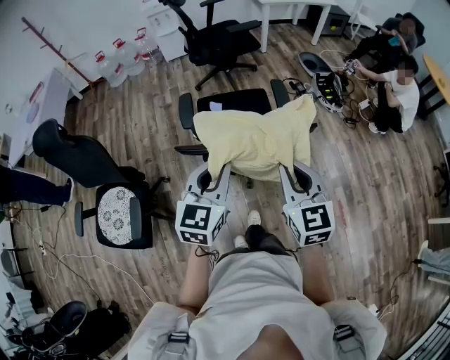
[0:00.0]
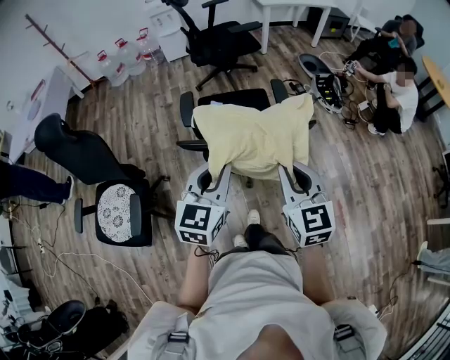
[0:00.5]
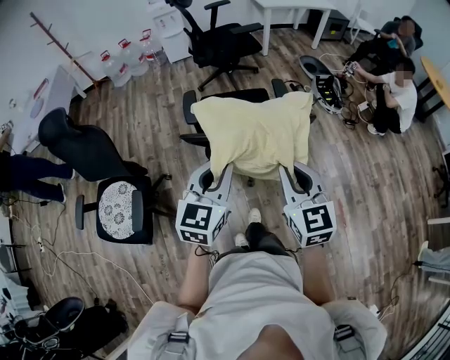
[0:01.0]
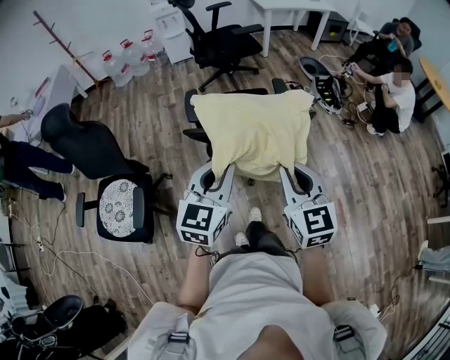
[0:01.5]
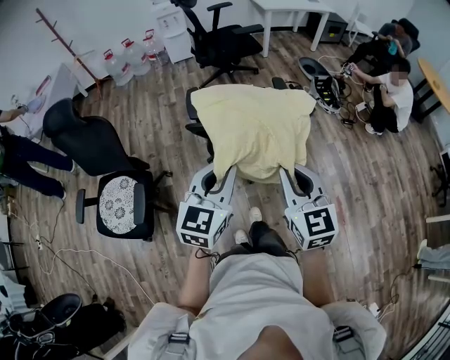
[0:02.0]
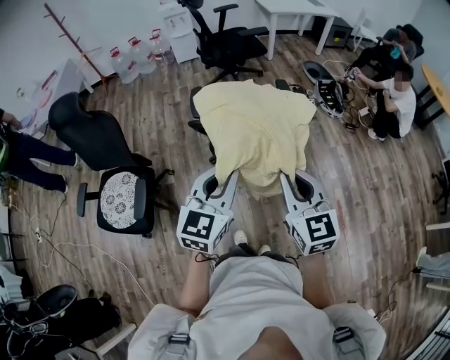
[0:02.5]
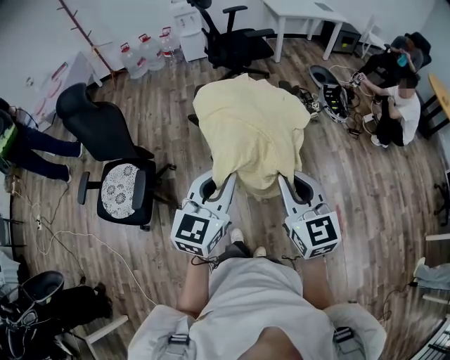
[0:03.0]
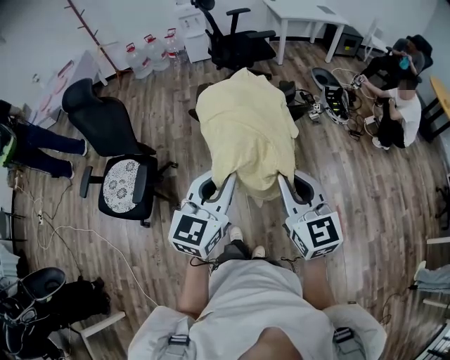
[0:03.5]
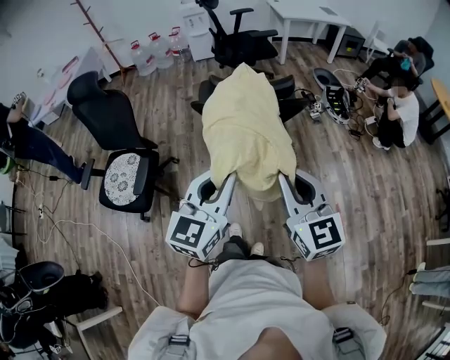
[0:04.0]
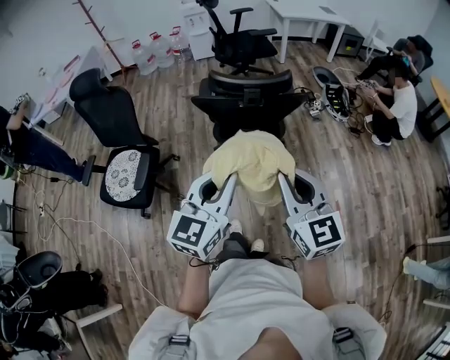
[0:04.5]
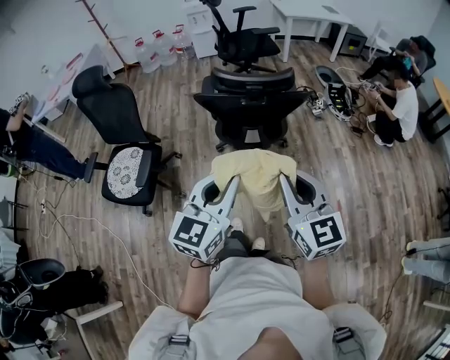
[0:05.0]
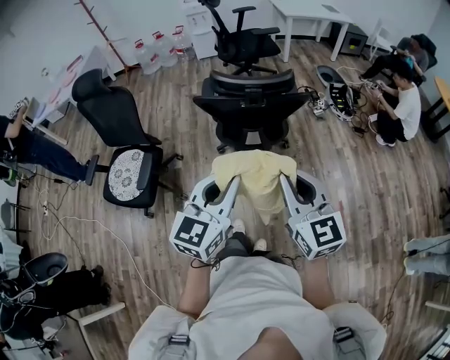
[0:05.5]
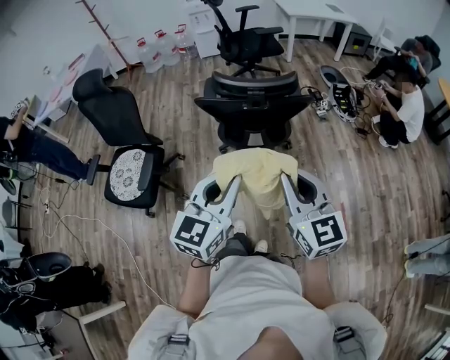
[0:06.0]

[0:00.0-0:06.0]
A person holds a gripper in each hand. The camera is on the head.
0:00.0 to 0:02.0: Both grippers travel together backward, some 10 cm.
0:02.0 to 0:04.0: Both grippers travel together backward, approximately 15 cm.
0:04.0 to 0:06.0: There are only small adjustments of the grippers.

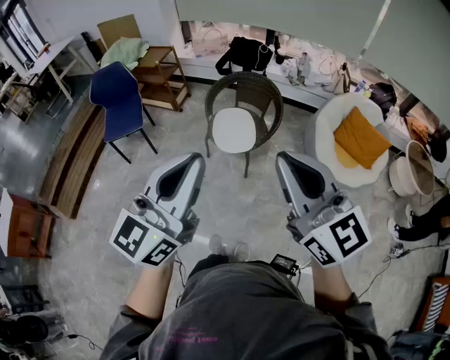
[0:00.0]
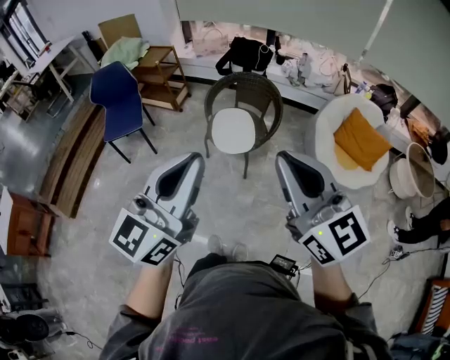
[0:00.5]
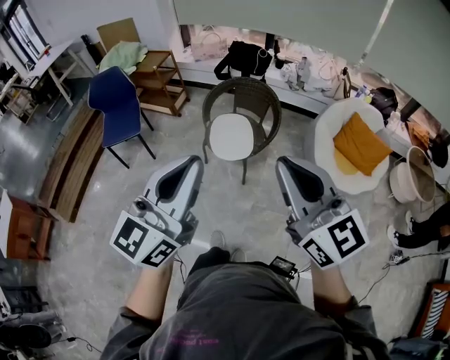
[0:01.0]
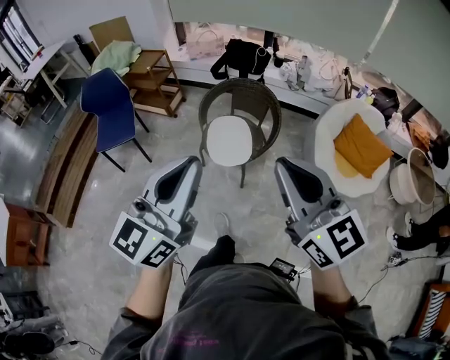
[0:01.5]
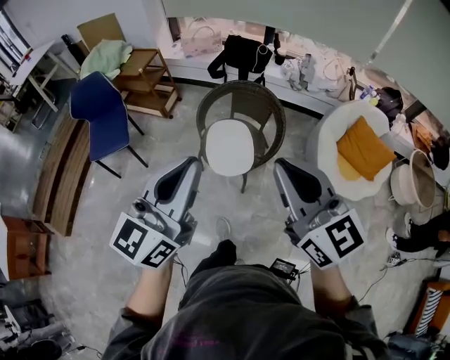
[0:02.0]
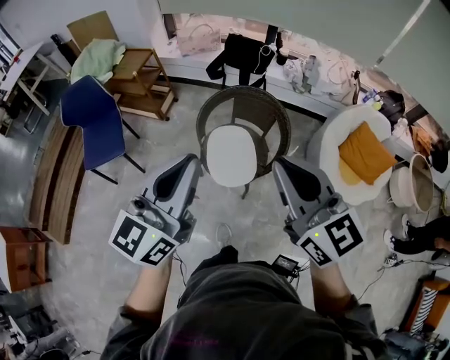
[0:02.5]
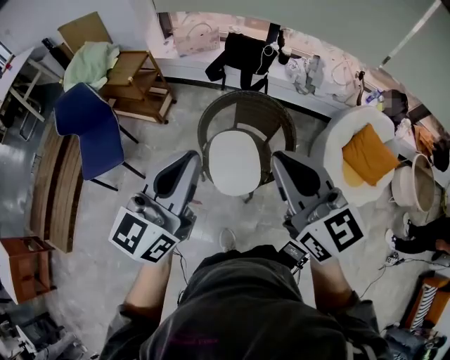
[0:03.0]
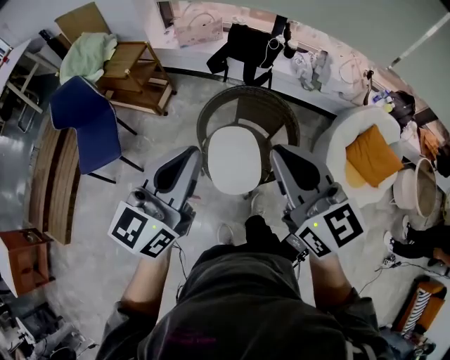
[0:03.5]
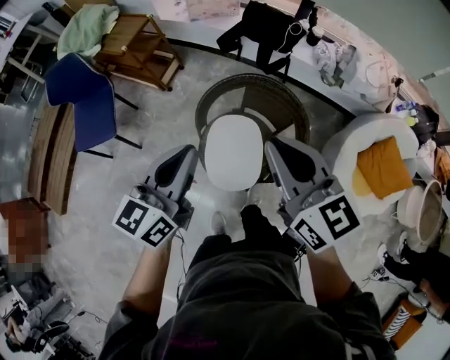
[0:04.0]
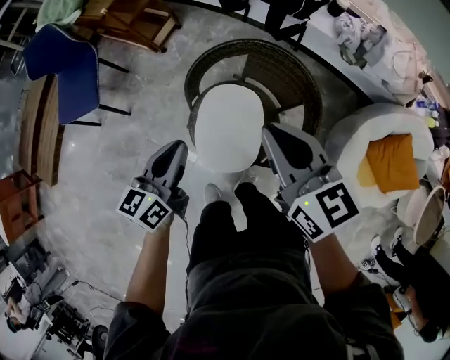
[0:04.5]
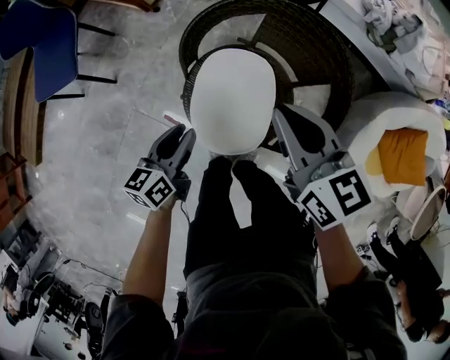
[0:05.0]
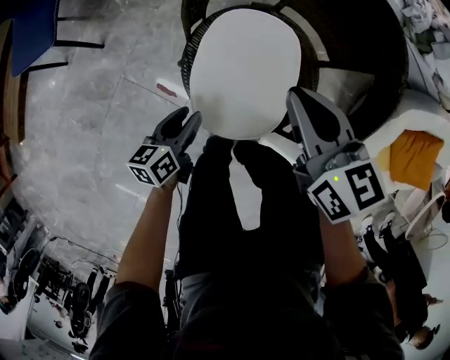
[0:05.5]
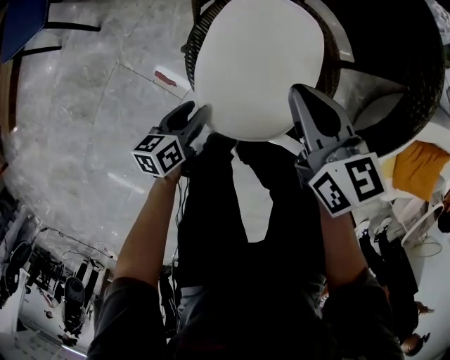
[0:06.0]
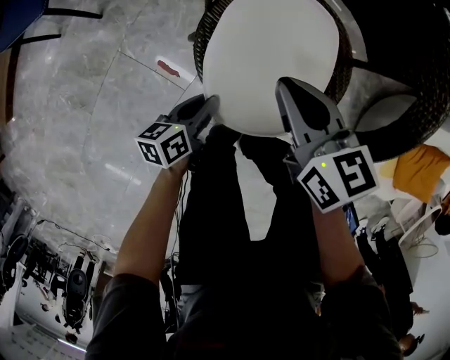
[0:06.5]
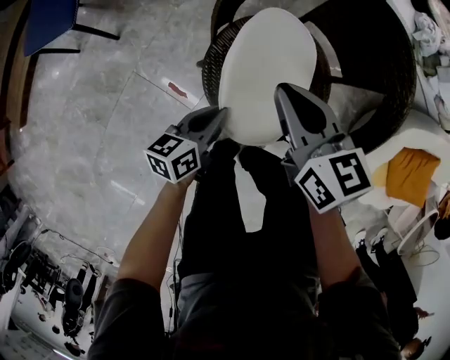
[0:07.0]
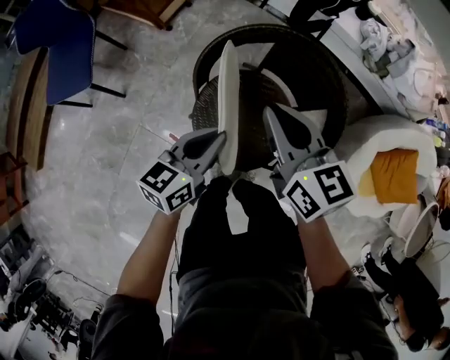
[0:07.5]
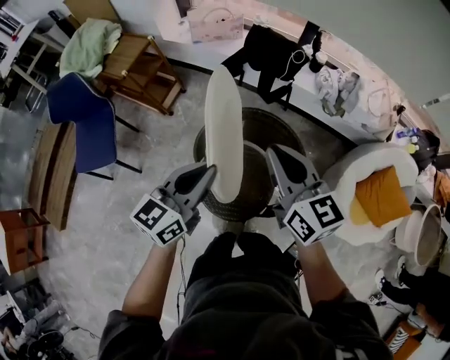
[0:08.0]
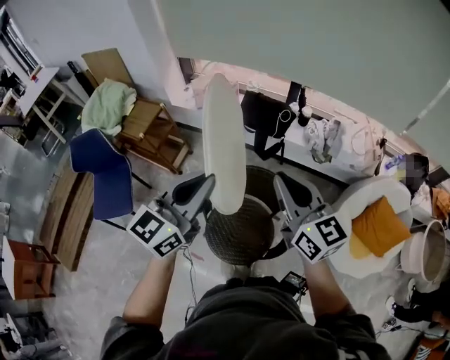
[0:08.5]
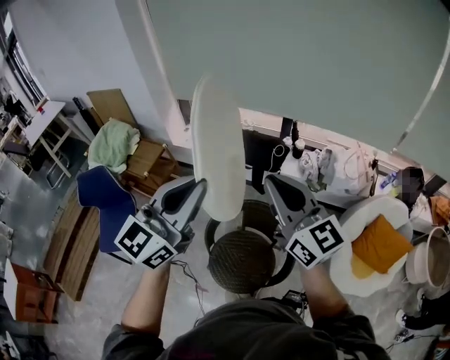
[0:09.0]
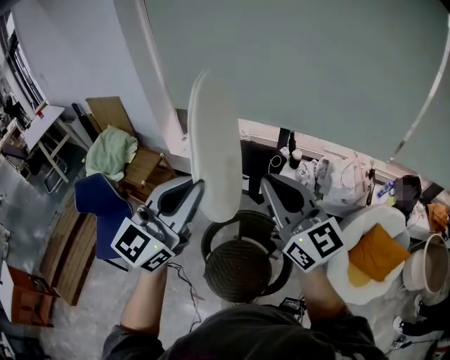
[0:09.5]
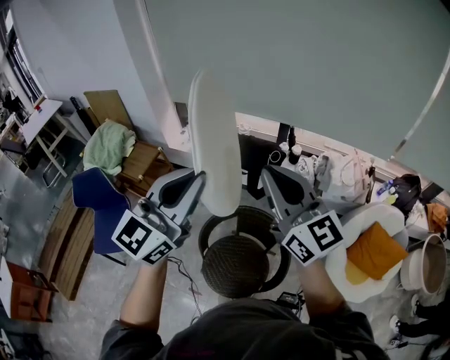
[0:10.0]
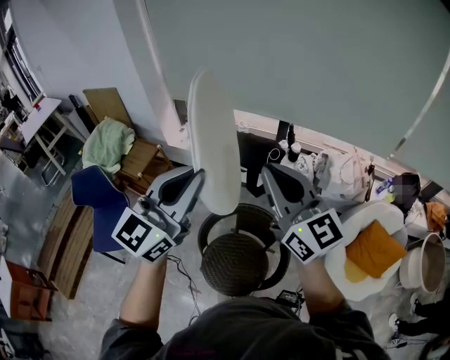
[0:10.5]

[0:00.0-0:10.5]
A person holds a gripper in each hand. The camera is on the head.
0:00.0 to 0:02.0: The two grippers go approximately 20 cm forward.
0:02.0 to 0:04.0: The right gripper heads forward, covering roughly 35 cm; the left gripper heads forward and downward, covering roughly 40 cm, and swivels about 20 degrees.
0:04.0 to 0:06.5: The two grippers go roughly 60 cm downward. The left gripper rotates roughly 50 degrees, and opens and closes again. Meanwhile the right gripper rotates roughly 30 degrees.
0:06.5 to 0:08.5: Both grippers move upward, some 70 cm. The right gripper tilts its fingers approximately 30 degrees upward; the left gripper twists roughly 60 degrees clockwise, seen from behind.
0:08.5 to 0:10.5: Both grippers move upward, approximately 15 cm.

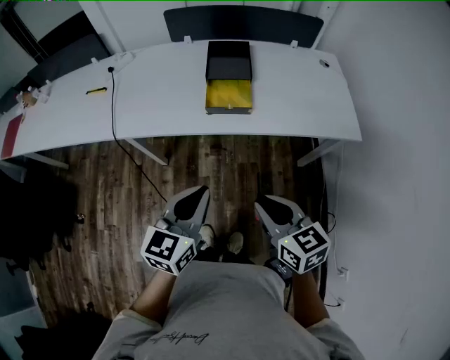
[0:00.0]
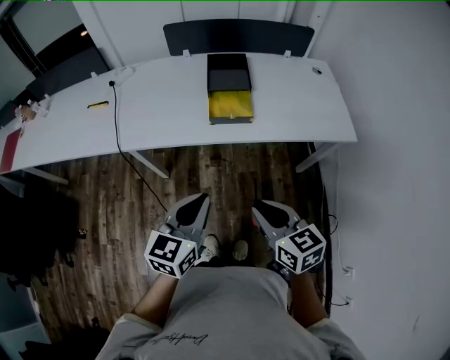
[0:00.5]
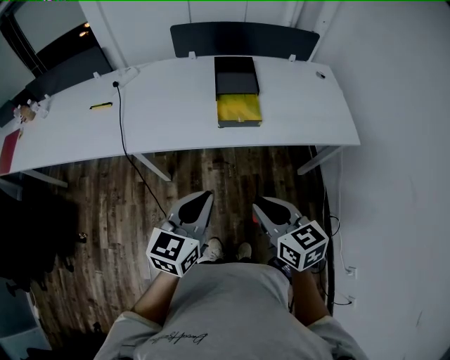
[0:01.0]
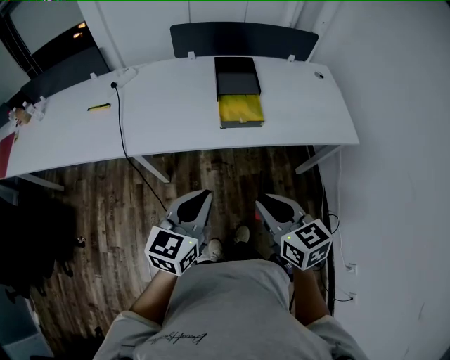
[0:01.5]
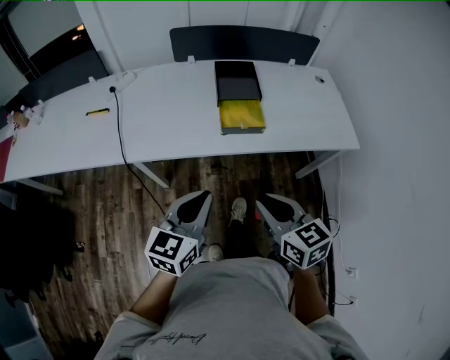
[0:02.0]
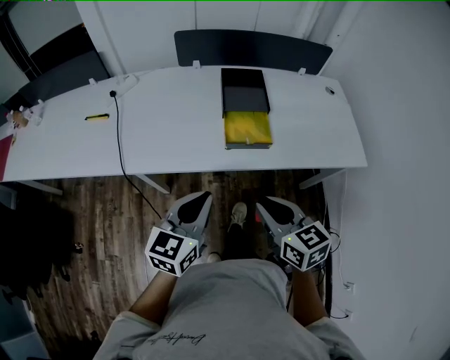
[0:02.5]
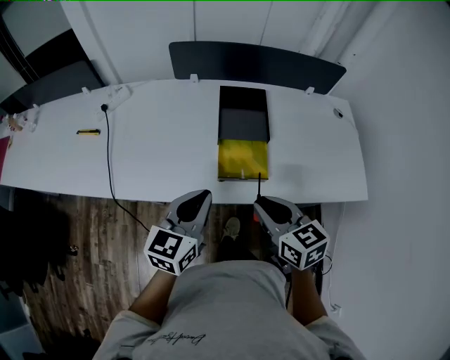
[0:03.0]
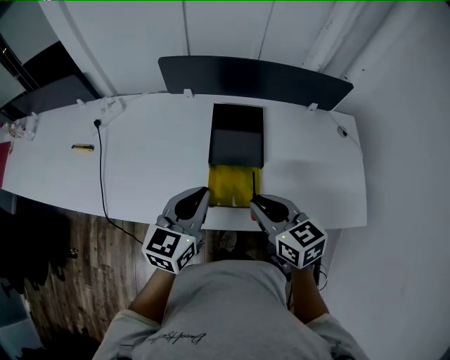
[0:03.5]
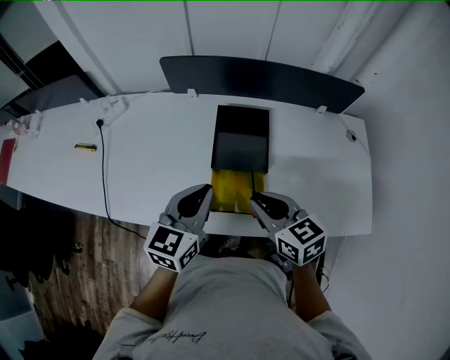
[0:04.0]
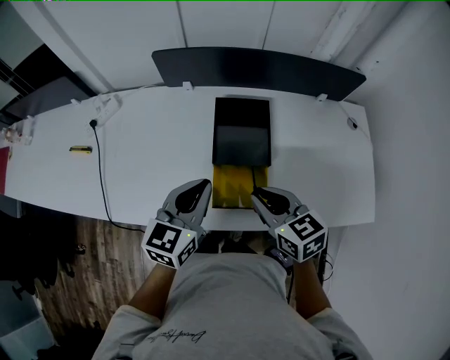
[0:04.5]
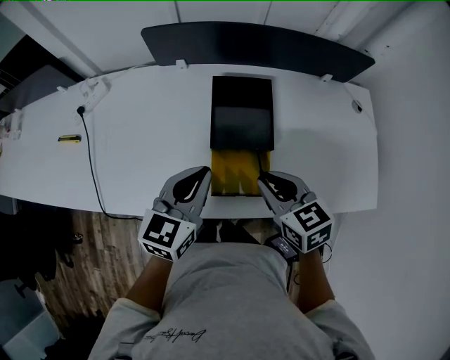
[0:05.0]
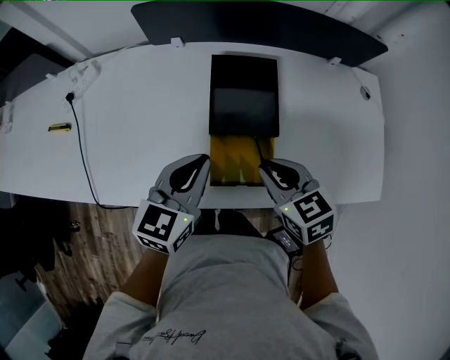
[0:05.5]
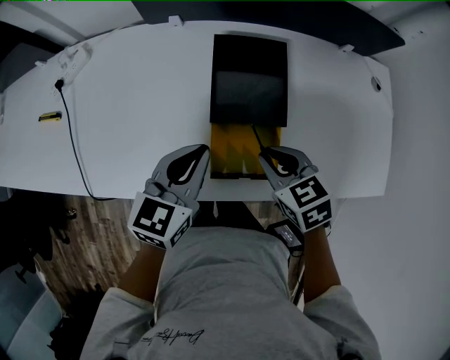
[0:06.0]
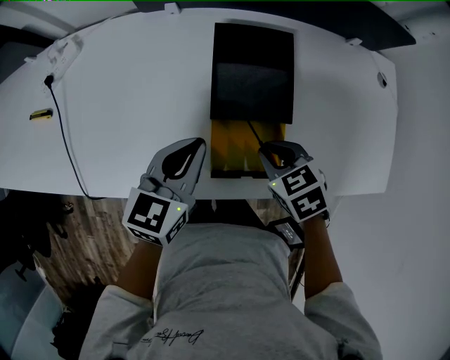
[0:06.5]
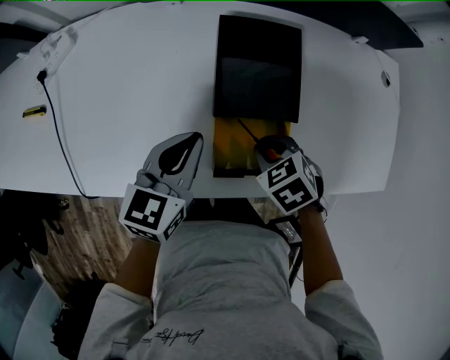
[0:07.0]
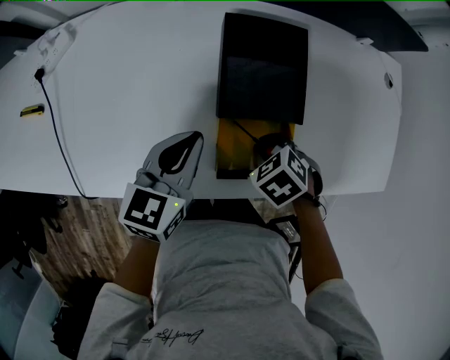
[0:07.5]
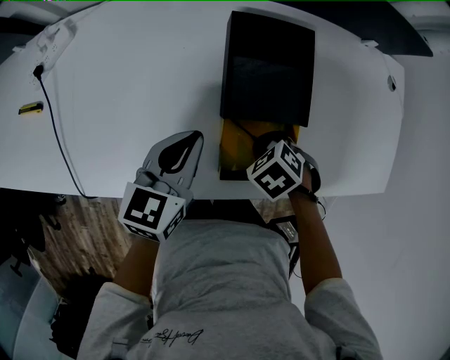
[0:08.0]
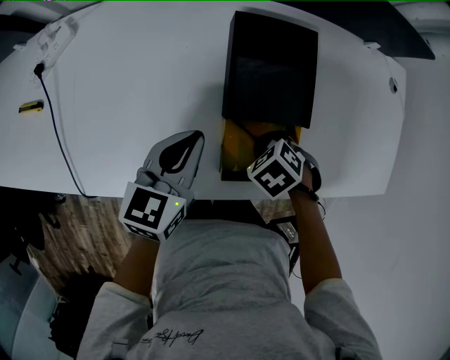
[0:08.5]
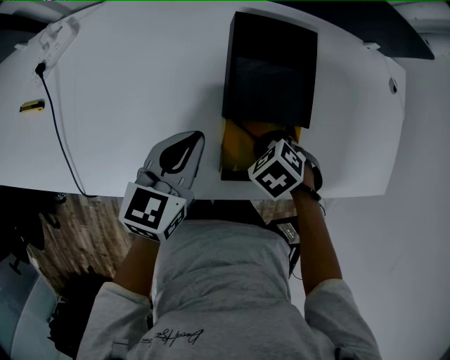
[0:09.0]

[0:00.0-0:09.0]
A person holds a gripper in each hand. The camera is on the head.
0:00.0 to 0:02.0: The grippers both shift to the left by about 10 cm.
0:02.0 to 0:04.5: Both grippers move forward, roughly 35 cm.
0:04.5 to 0:07.0: The left gripper heads downward and forward, covering roughly 15 cm; the right gripper goes some 20 cm downward, and tilts its fingers roughly 40 degrees downward.
0:07.0 to 0:09.0: The grippers move only a little.

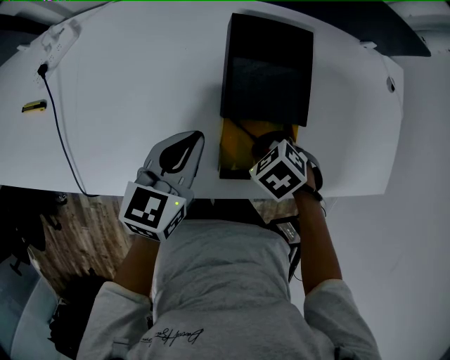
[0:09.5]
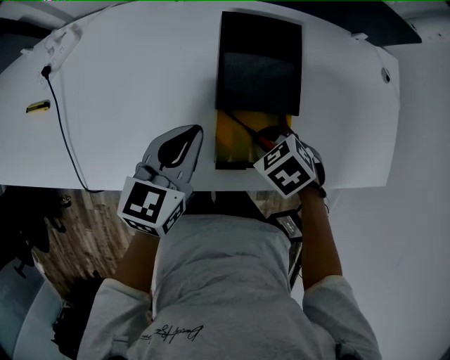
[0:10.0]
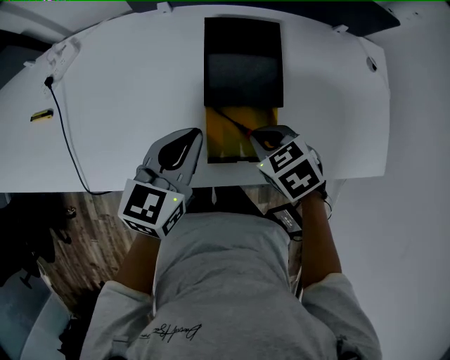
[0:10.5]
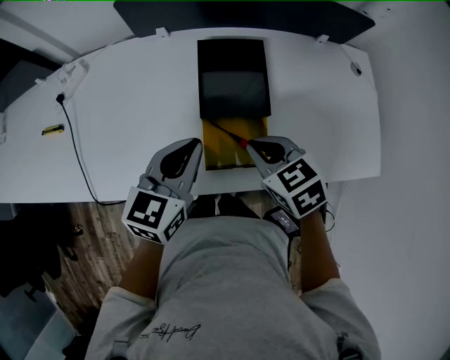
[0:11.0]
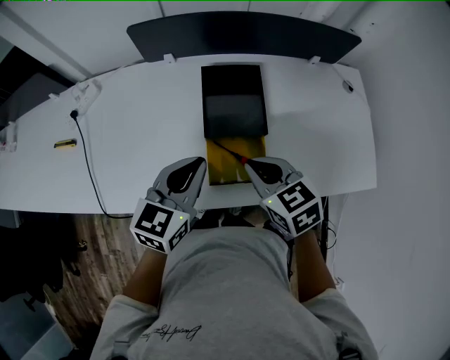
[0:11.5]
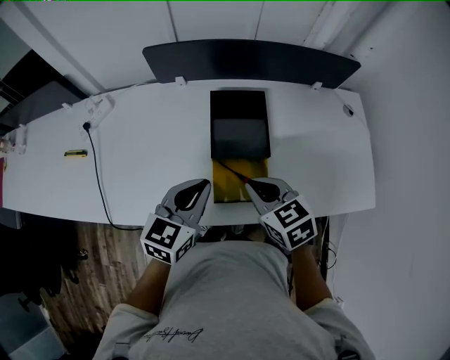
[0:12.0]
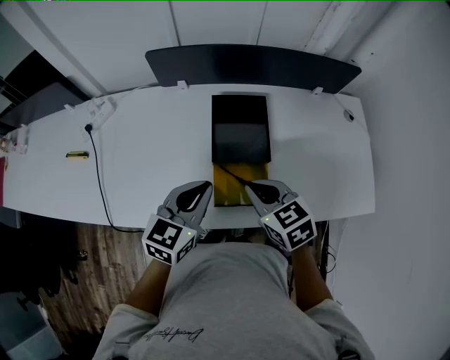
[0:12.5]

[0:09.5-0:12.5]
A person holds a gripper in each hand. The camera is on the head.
0:09.5 to 0:11.0: The right gripper moves upward, about 15 cm, and tips its fingers upward by roughly 30 degrees. Meanwhile the left gripper shifts roughly 10 cm upward.
0:11.0 to 0:12.5: There are only small adjustments of the grippers.
